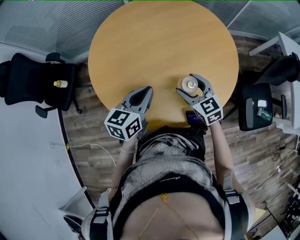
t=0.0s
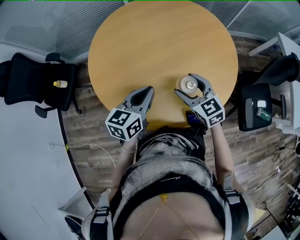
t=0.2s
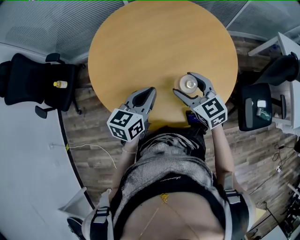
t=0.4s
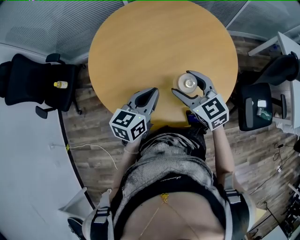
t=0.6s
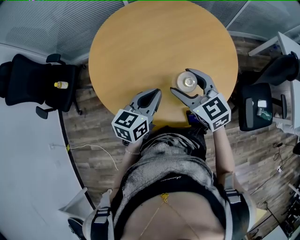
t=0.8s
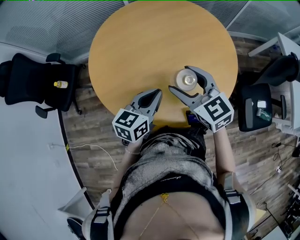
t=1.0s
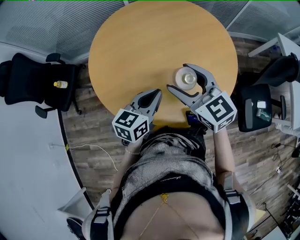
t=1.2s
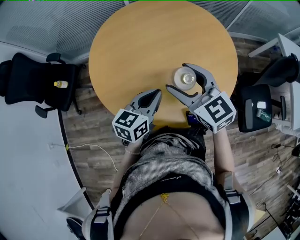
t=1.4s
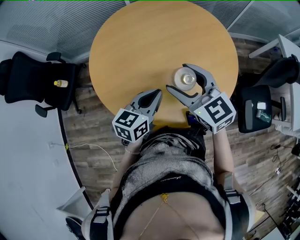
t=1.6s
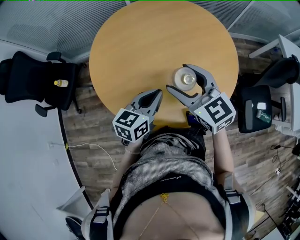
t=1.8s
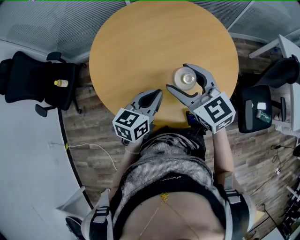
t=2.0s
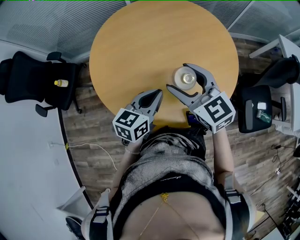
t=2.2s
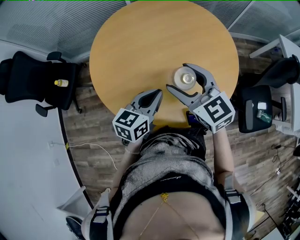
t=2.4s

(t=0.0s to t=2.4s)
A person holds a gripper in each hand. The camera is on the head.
t=0.0s - t=1.2s: The right gripper goes approximately 15 cm upward.
t=1.2s - t=2.4s: Both grippers stay about where they are.

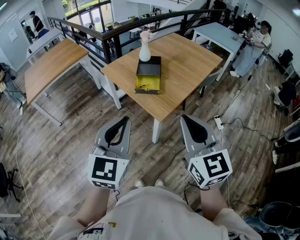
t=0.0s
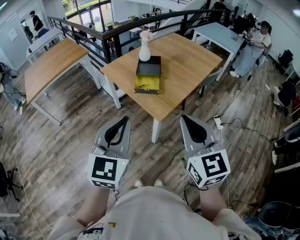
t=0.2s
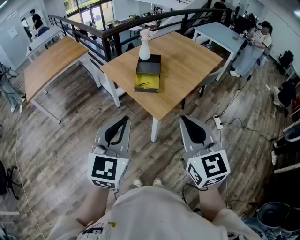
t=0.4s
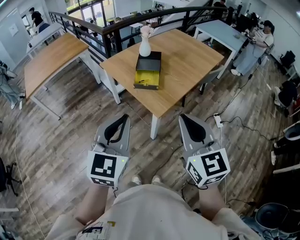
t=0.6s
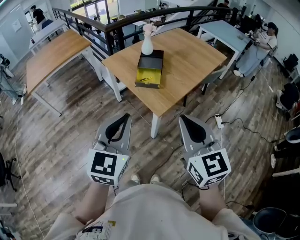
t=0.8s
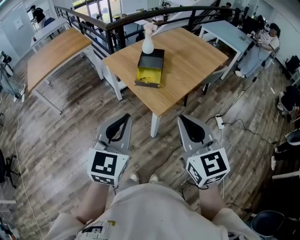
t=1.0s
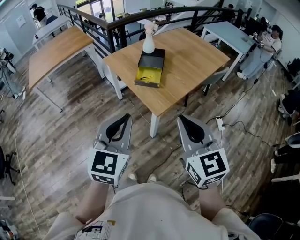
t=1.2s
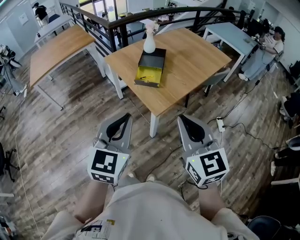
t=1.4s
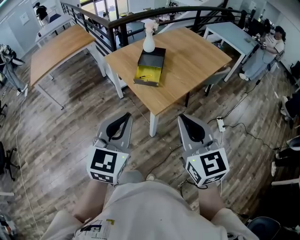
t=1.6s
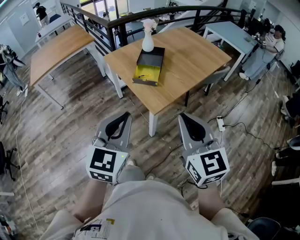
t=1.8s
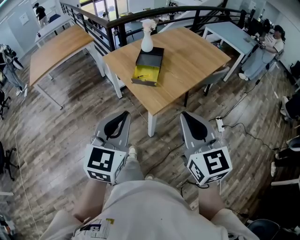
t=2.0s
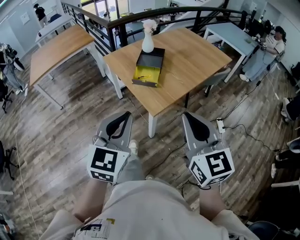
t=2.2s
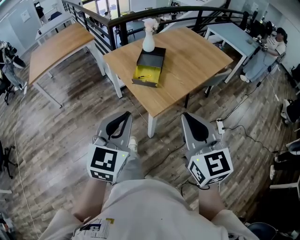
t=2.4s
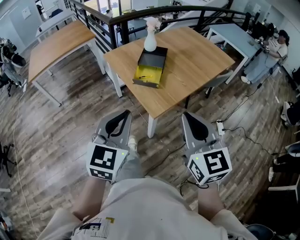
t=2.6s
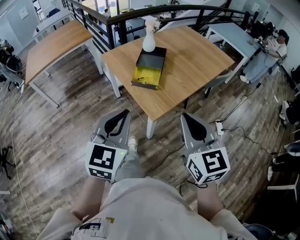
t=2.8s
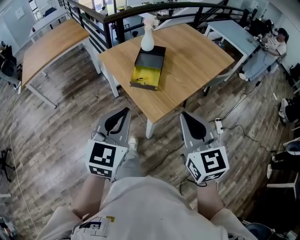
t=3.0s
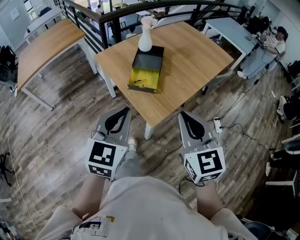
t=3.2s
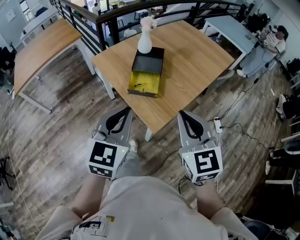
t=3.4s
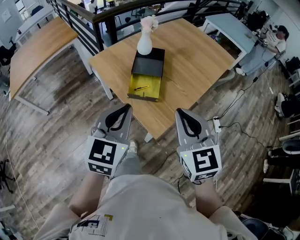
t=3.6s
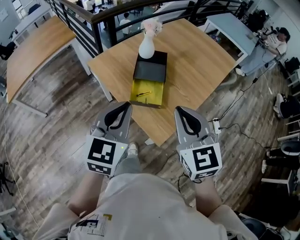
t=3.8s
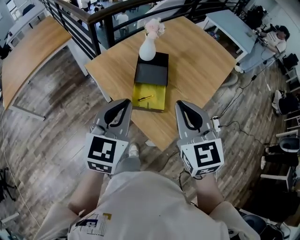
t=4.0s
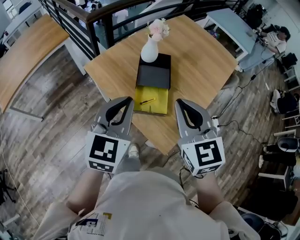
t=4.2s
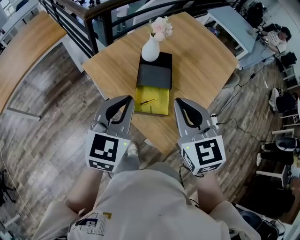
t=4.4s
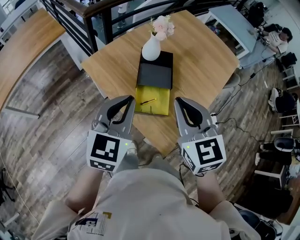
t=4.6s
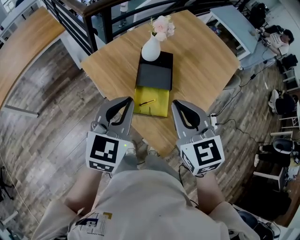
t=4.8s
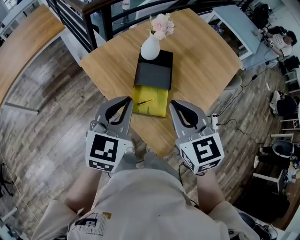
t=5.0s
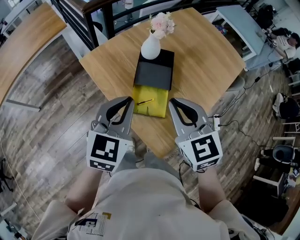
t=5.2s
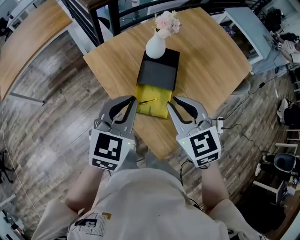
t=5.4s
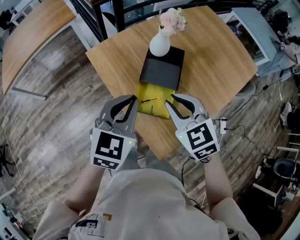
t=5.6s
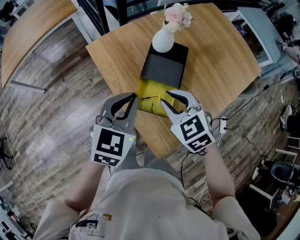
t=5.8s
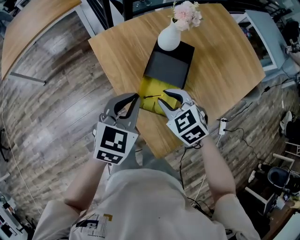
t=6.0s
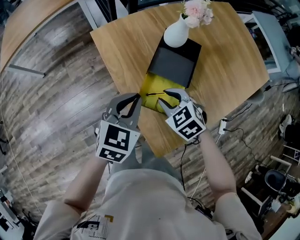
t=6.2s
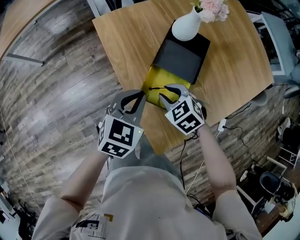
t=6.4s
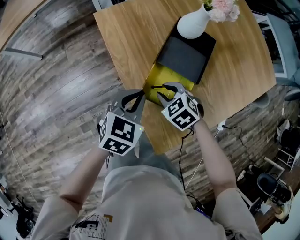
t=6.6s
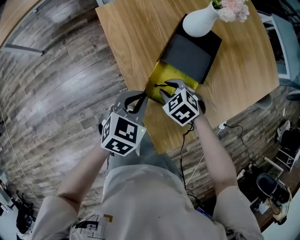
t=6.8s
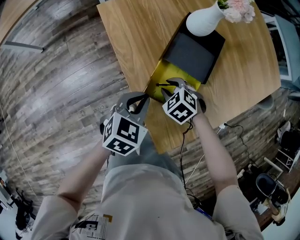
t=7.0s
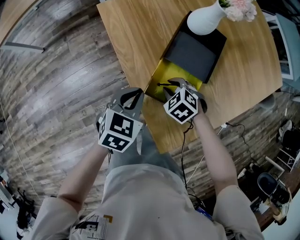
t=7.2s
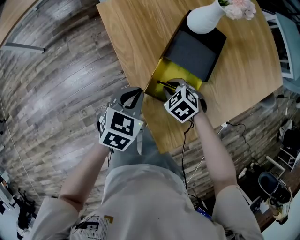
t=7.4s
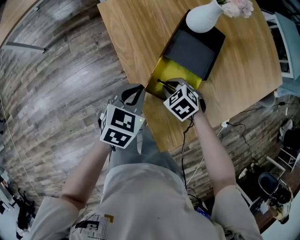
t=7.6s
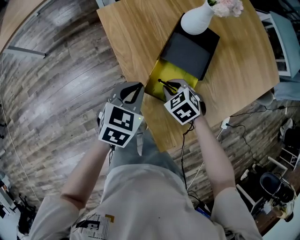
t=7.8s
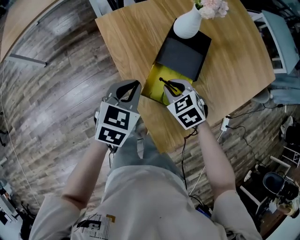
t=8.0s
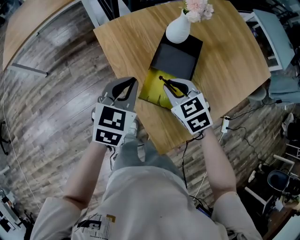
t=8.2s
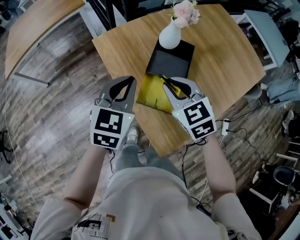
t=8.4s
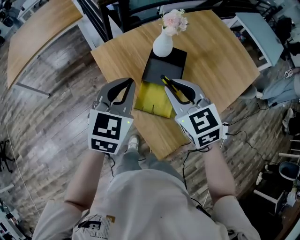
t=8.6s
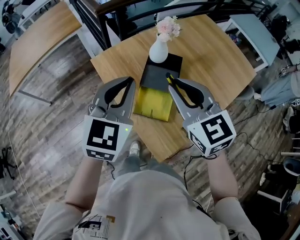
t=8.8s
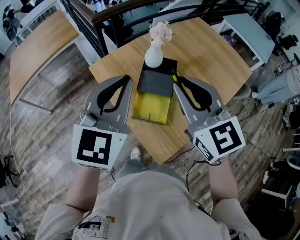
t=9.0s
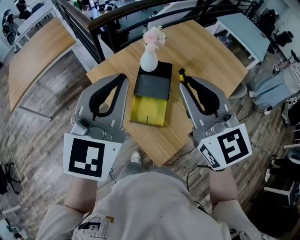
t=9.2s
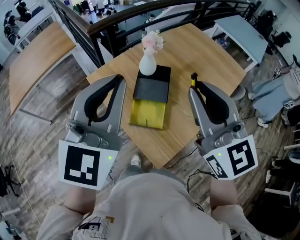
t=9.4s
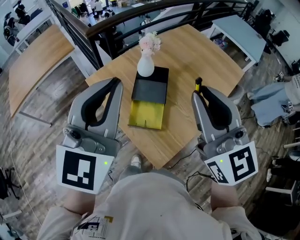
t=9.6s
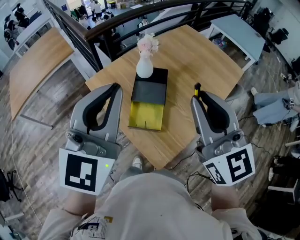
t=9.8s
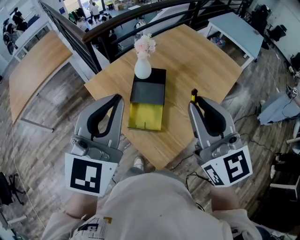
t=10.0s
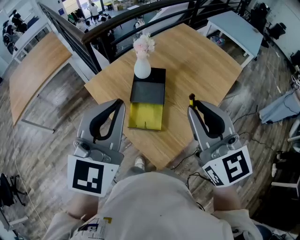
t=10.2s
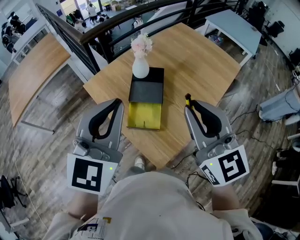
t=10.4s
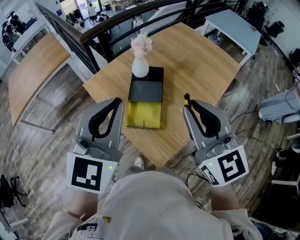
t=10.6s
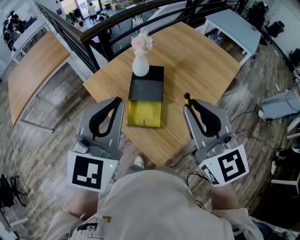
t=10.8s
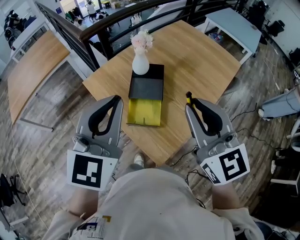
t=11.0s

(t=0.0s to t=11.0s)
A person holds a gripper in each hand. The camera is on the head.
t=0.0s - t=1.6s: The left gripper moves to the right and downward, roughly 10 cm; the right gripper shifts some 5 cm to the right.
t=1.6s - t=3.2s: Both grippers travel together forward, approximately 15 cm.
t=3.2s - t=4.8s: The left gripper shifts roughly 35 cm forward. Meanwhile the right gripper is displaced forward and to the left by about 35 cm.
t=4.8s - t=6.2s: The right gripper moves downward, some 25 cm, angles its fingers downward, by roughly 30 degrees, and opens up, while the left gripper travels downward by roughly 15 cm.
t=6.2s - t=7.8s: Both grippers move downward, roughly 10 cm.
t=7.8s - t=9.4s: Both grippers move upward, roughly 50 cm. The left gripper tips its fingers upward by about 40 degrees. Meanwhile the right gripper tilts its fingers some 60 degrees upward.
t=9.4s - t=11.0s: The left gripper shifts by some 5 cm. The right gripper moves some 5 cm.

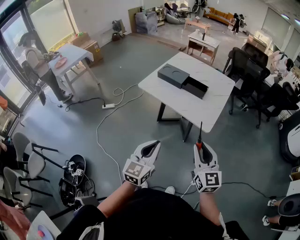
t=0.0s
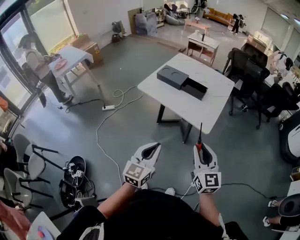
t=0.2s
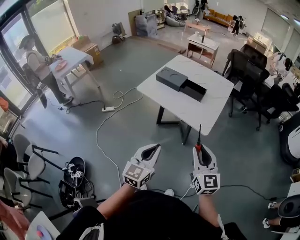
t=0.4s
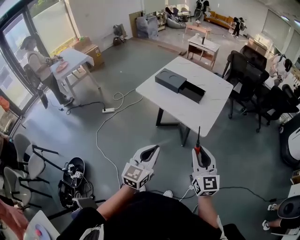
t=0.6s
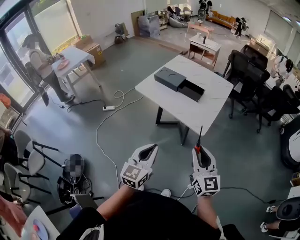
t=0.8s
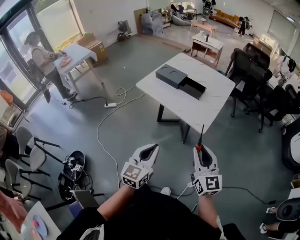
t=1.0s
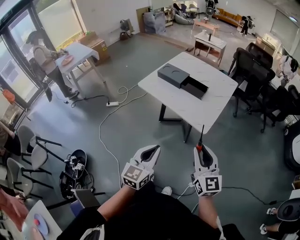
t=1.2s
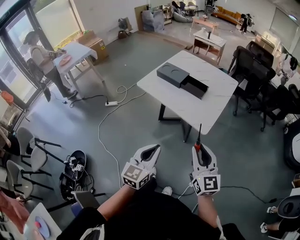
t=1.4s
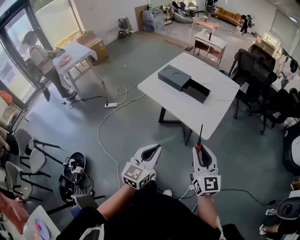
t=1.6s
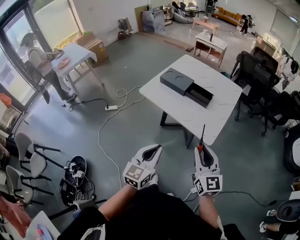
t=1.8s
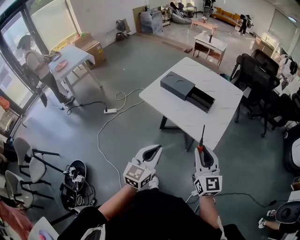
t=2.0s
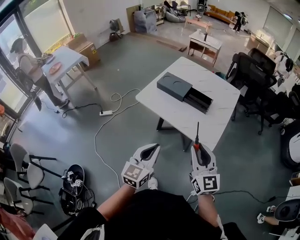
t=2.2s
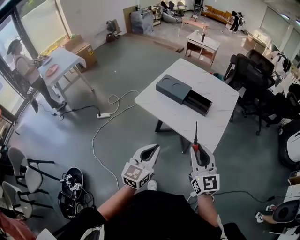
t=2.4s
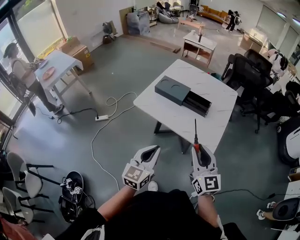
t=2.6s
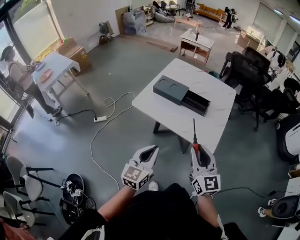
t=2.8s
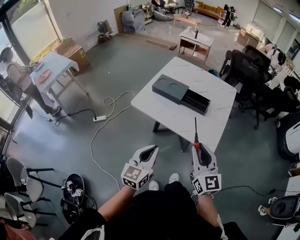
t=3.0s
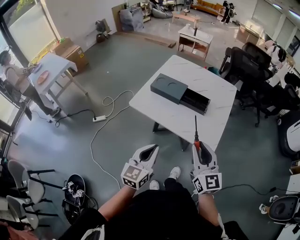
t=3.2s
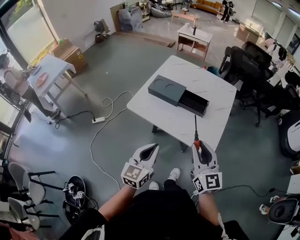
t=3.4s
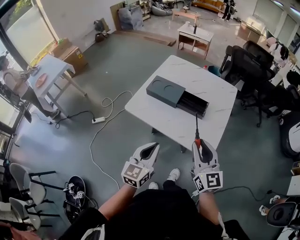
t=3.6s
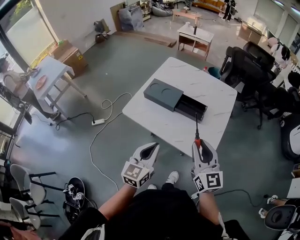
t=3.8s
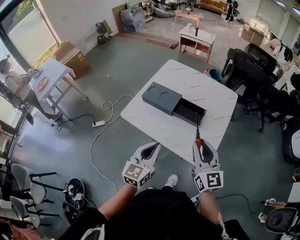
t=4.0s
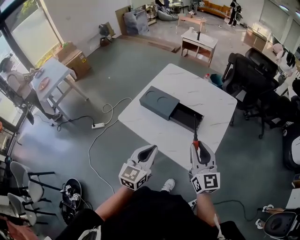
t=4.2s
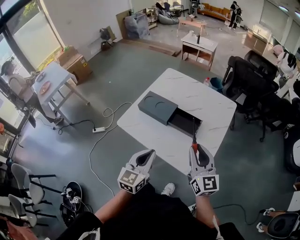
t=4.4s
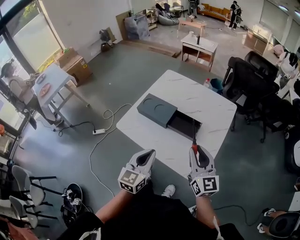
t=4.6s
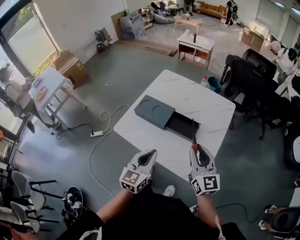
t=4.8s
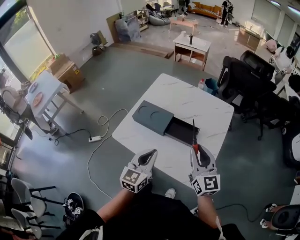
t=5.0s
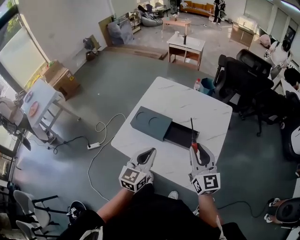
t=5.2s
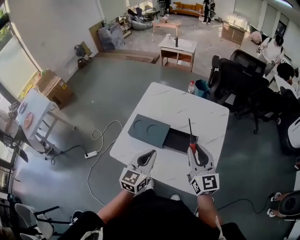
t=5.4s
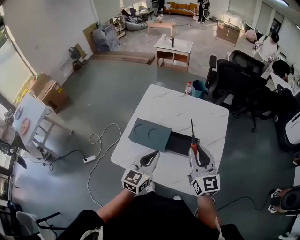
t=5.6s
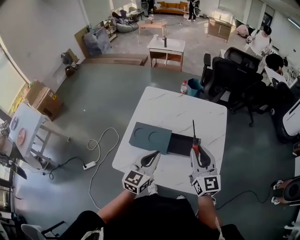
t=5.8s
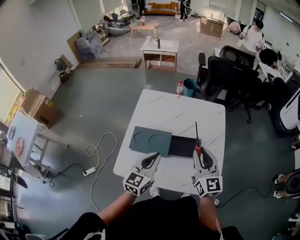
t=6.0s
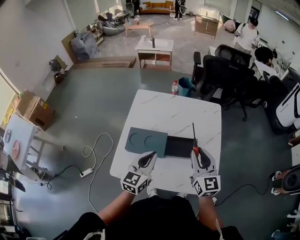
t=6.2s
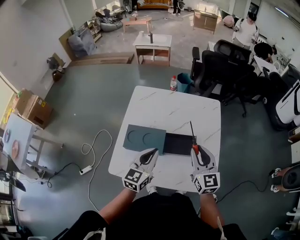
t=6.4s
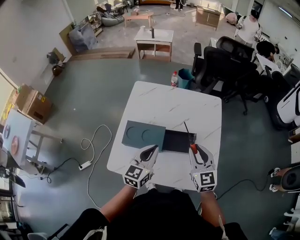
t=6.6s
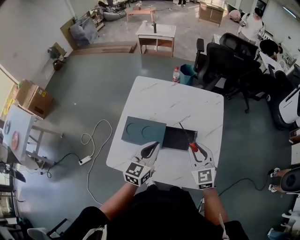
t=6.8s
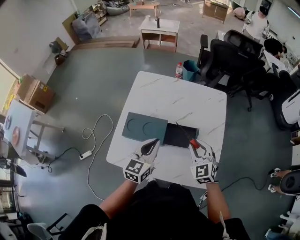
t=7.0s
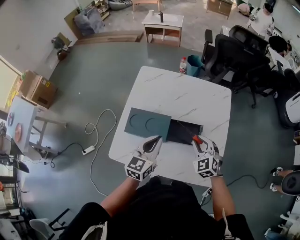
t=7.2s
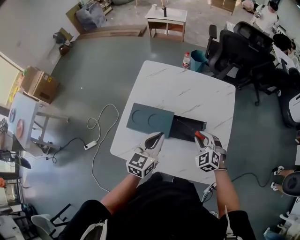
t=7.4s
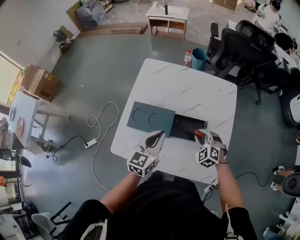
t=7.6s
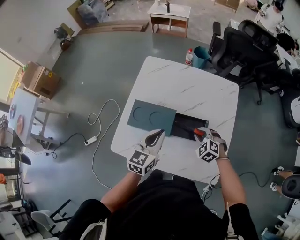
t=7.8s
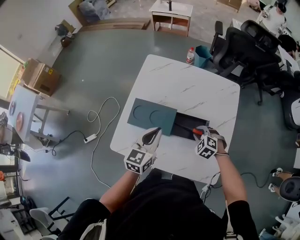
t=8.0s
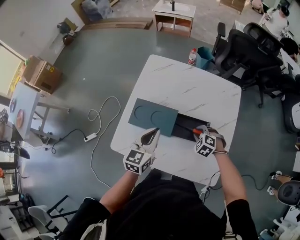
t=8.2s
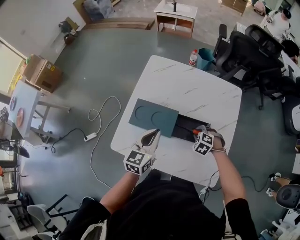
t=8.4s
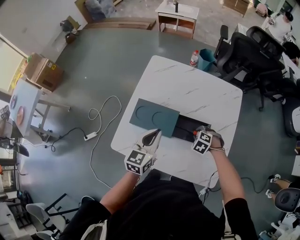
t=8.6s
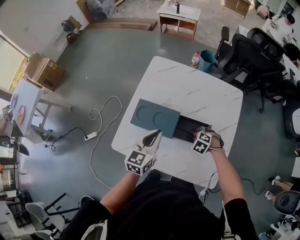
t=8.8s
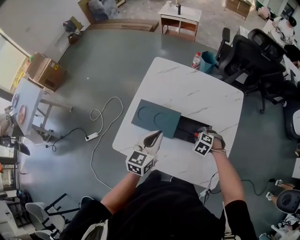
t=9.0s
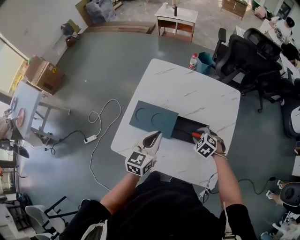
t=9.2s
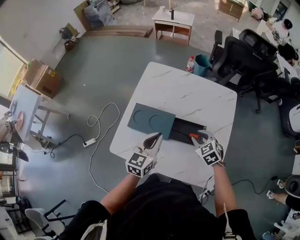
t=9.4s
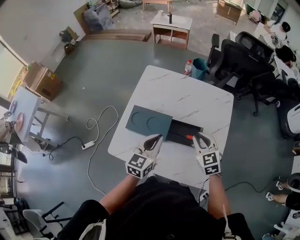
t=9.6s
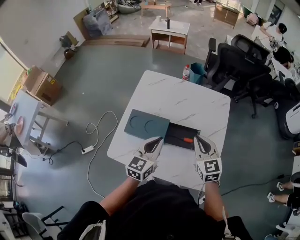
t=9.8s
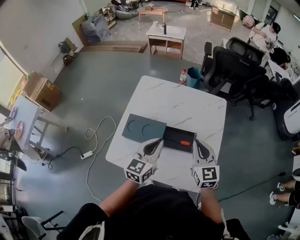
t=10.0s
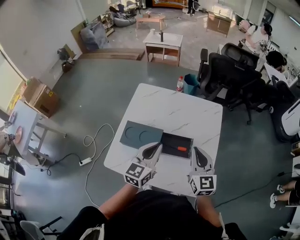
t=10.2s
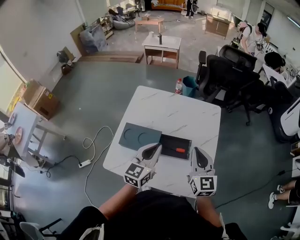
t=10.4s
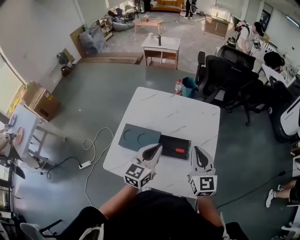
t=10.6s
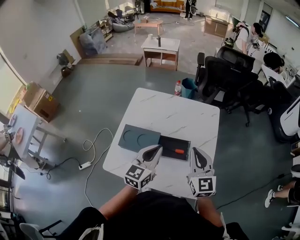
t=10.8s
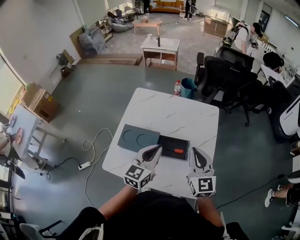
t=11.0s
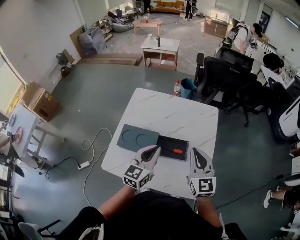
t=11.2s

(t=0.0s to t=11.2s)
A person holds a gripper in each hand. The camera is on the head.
t=0.0s - t=1.6s: The right gripper moves approximately 5 cm; the left gripper changes place by about 5 cm.
t=1.6s - t=3.2s: The two grippers go some 15 cm forward and to the left.
t=3.2s - t=4.8s: Both grippers travel together forward and to the right, some 20 cm.
t=4.8s - t=6.4s: The left gripper travels forward by about 15 cm, and turns by some 20 degrees; the right gripper goes some 10 cm forward and to the left, and swivels some 20 degrees.
t=6.4s - t=8.0s: The right gripper travels downward by about 25 cm, and points its fingers some 50 degrees further downward, while the left gripper moves approximately 5 cm.
t=8.0s - t=9.6s: The right gripper moves upward, approximately 15 cm, and changes its angle by approximately 40 degrees.
t=9.6s - t=11.2s: The left gripper goes about 10 cm upward and to the right. Meanwhile the right gripper goes some 10 cm upward, and swivels roughly 30 degrees.
